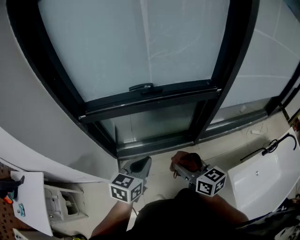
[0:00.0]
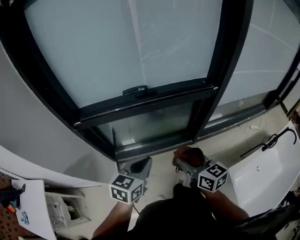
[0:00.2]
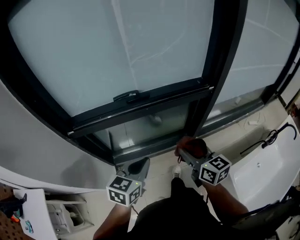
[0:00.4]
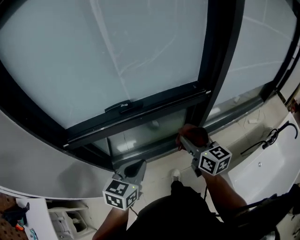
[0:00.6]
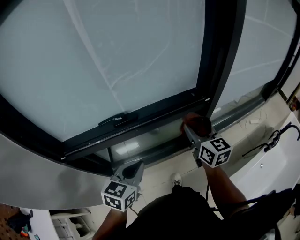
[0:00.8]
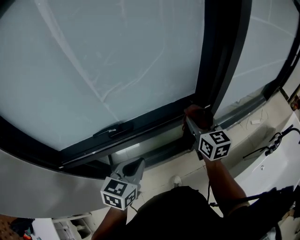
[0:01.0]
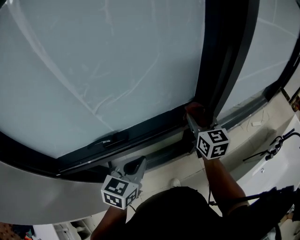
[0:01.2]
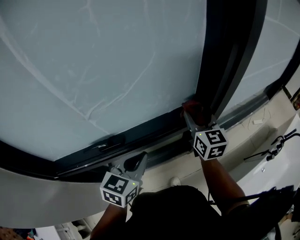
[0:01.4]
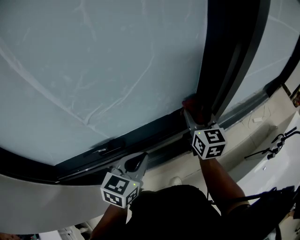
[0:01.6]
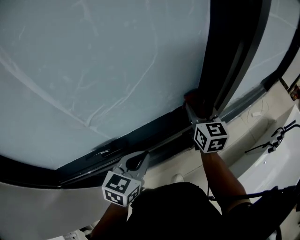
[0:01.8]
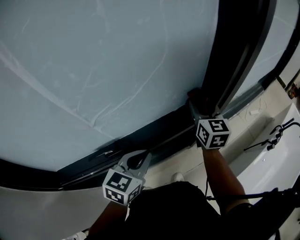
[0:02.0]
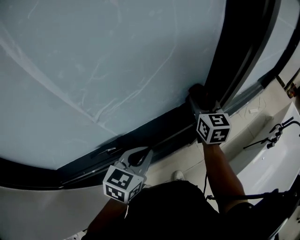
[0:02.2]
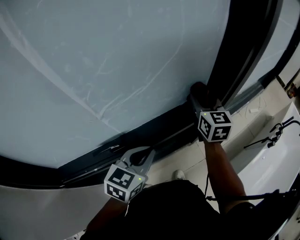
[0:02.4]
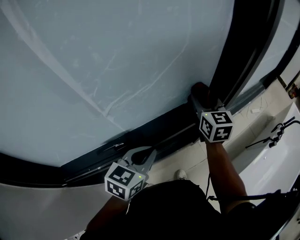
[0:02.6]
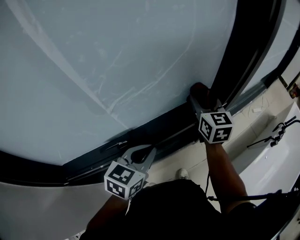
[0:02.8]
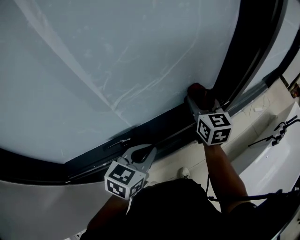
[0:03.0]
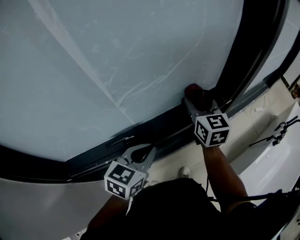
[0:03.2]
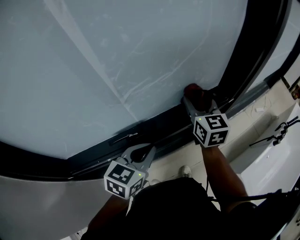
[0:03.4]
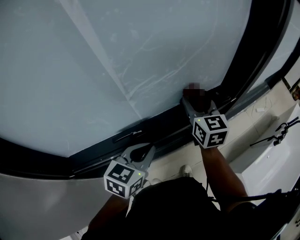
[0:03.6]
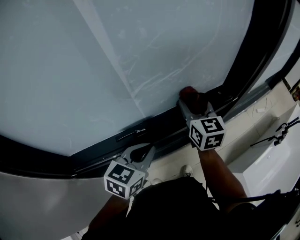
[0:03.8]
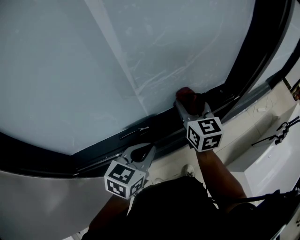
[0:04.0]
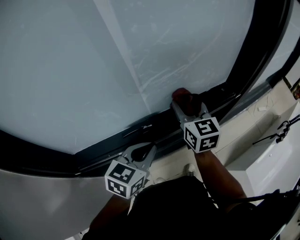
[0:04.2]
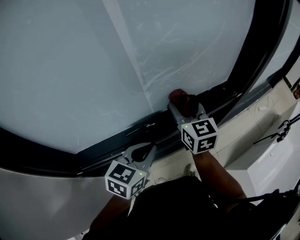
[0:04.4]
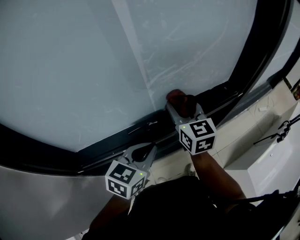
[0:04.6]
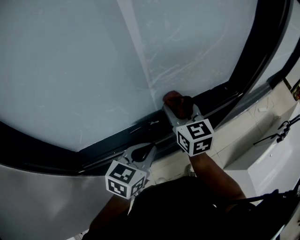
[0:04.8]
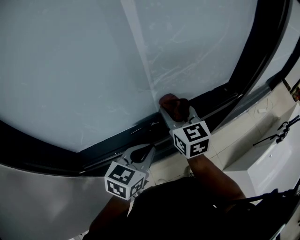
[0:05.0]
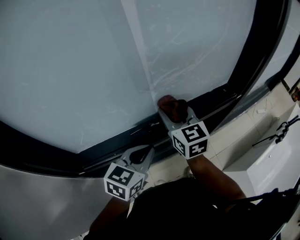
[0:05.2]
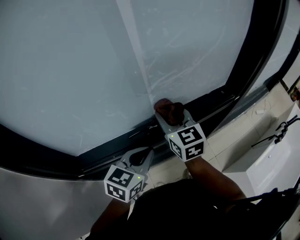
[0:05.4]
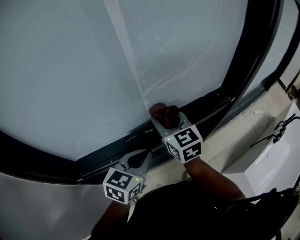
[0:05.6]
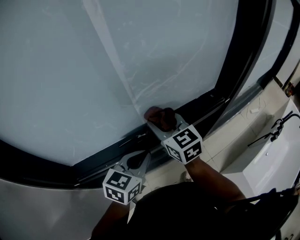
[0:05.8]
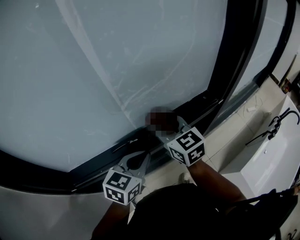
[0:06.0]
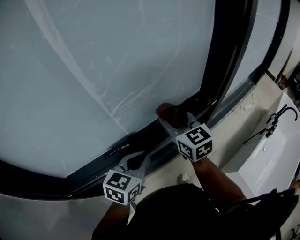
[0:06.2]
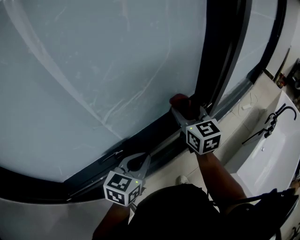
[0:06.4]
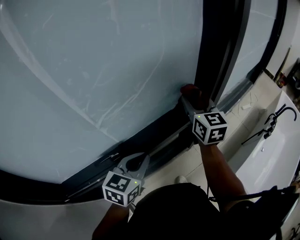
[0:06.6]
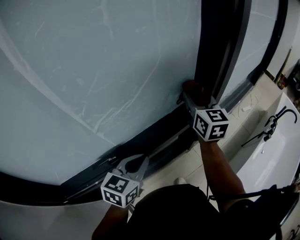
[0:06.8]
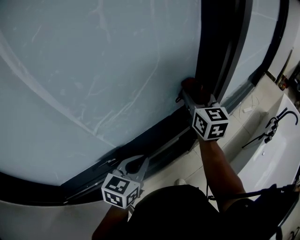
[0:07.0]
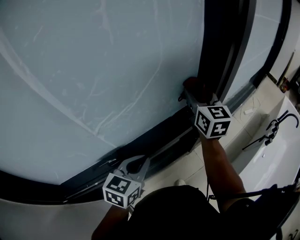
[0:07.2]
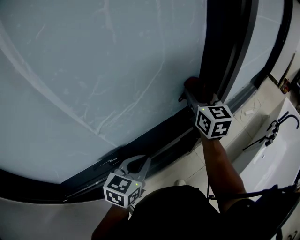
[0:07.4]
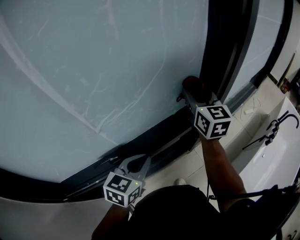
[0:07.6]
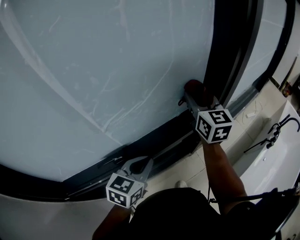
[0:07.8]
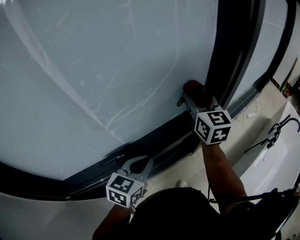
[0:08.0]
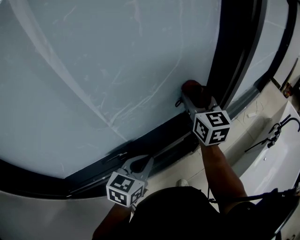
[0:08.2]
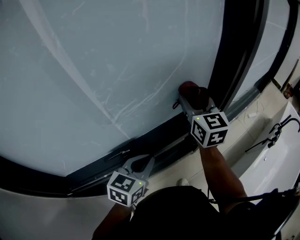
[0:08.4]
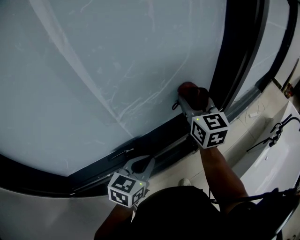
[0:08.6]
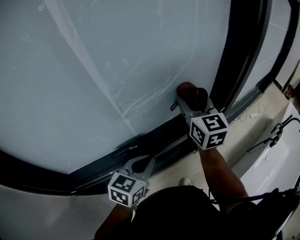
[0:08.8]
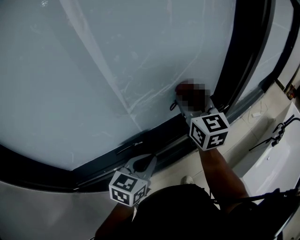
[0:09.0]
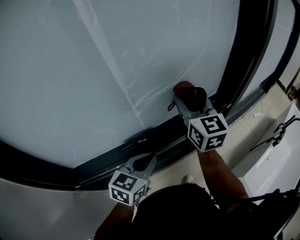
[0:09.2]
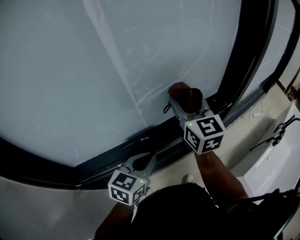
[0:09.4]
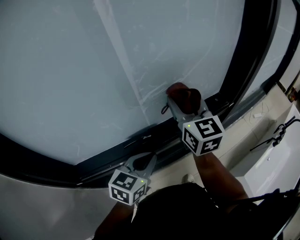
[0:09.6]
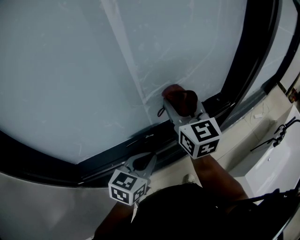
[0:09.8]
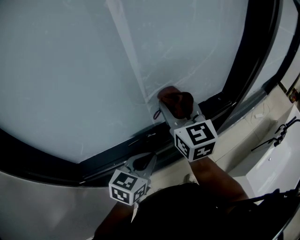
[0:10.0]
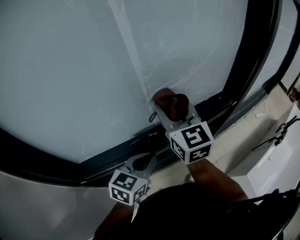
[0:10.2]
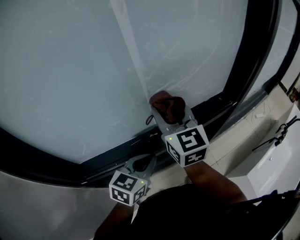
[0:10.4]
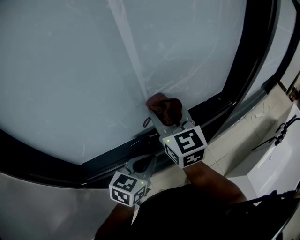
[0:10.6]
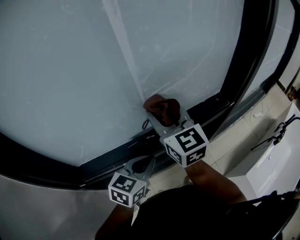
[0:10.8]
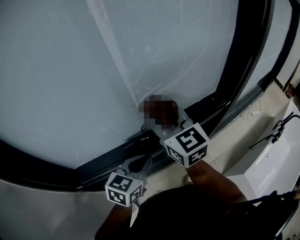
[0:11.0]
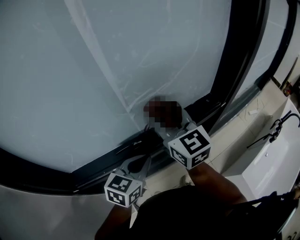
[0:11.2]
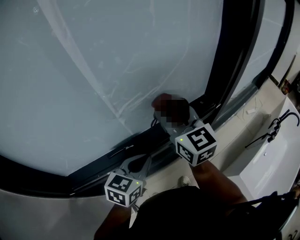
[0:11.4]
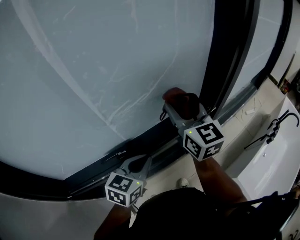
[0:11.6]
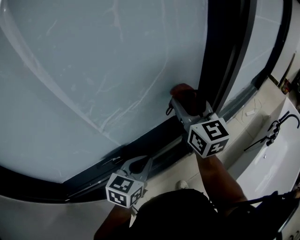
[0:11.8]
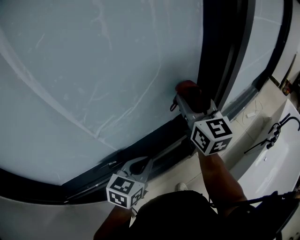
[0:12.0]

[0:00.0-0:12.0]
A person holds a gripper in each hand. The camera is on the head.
0:00.0 to 0:01.6: The grippers both shift forward by about 40 cm. The right gripper swivels roughly 40 degrees.
0:01.6 to 0:03.0: Both grippers travel together to the left, about 10 cm.
0:03.0 to 0:04.4: The right gripper travels to the left and backward by some 15 cm, while the left gripper shifts roughly 10 cm to the left and backward.
0:06.0 to 0:07.6: The right gripper heads to the right and forward, covering roughly 25 cm, and changes its angle by some 30 degrees. Meanwhile the left gripper goes about 10 cm to the right and forward.
0:07.6 to 0:09.0: The right gripper is displaced to the left and backward by approximately 15 cm, while the left gripper travels to the left and backward by about 10 cm.
0:09.0 to 0:10.4: The left gripper shifts approximately 5 cm to the left; the right gripper shifts approximately 15 cm to the left and backward.
0:10.4 to 0:12.0: The right gripper goes about 25 cm to the right and forward, while the left gripper is displaced to the right and forward by some 15 cm.

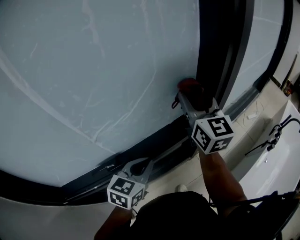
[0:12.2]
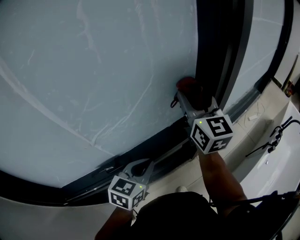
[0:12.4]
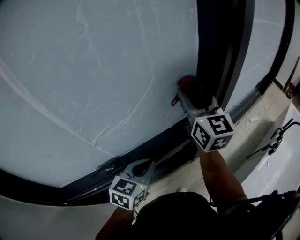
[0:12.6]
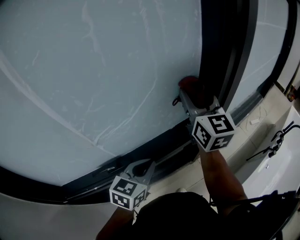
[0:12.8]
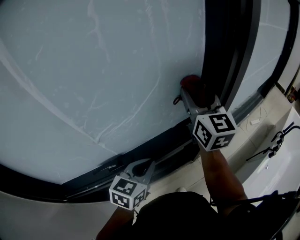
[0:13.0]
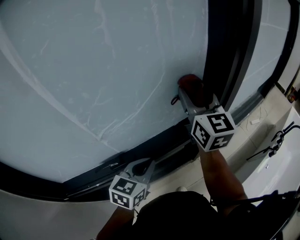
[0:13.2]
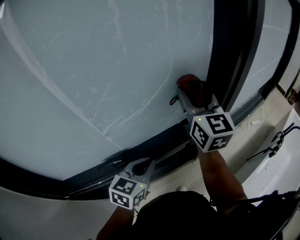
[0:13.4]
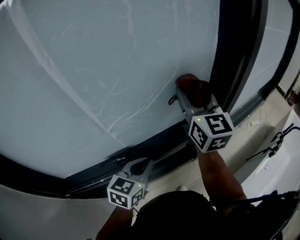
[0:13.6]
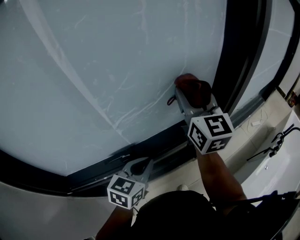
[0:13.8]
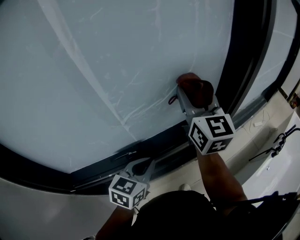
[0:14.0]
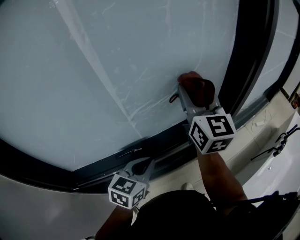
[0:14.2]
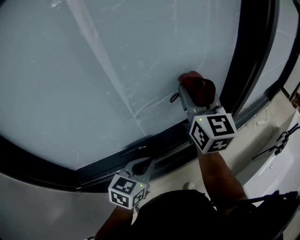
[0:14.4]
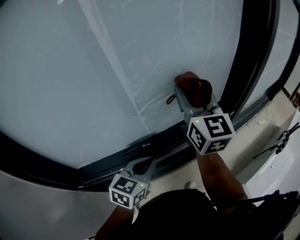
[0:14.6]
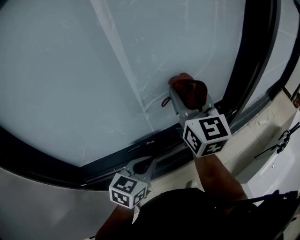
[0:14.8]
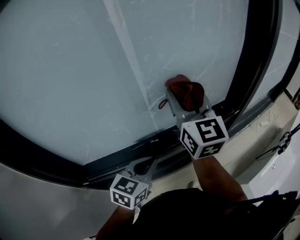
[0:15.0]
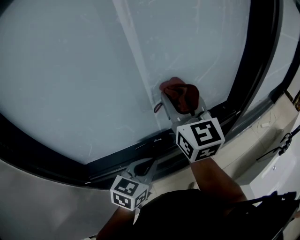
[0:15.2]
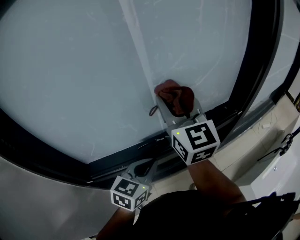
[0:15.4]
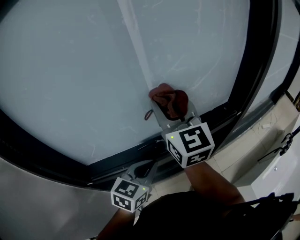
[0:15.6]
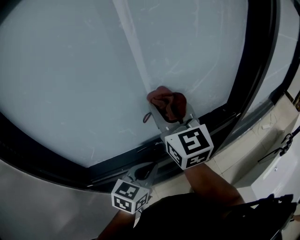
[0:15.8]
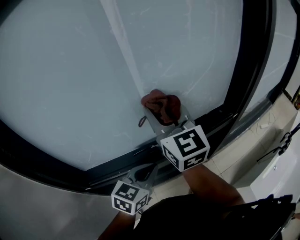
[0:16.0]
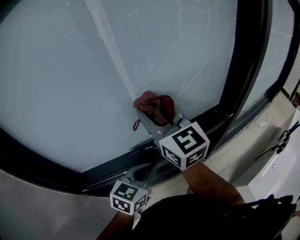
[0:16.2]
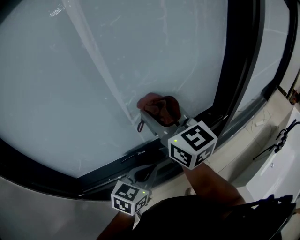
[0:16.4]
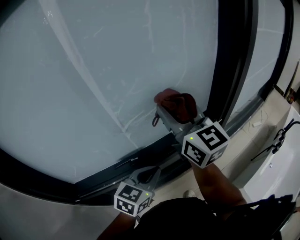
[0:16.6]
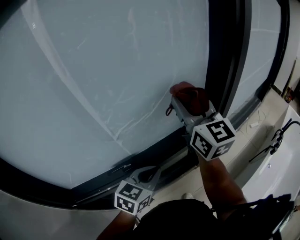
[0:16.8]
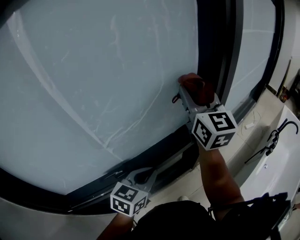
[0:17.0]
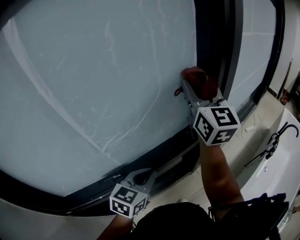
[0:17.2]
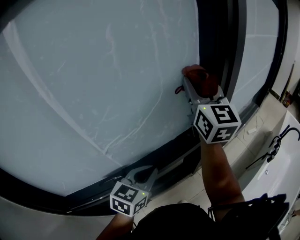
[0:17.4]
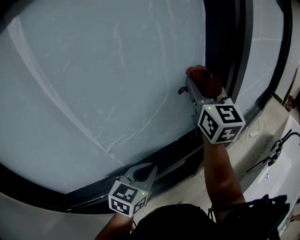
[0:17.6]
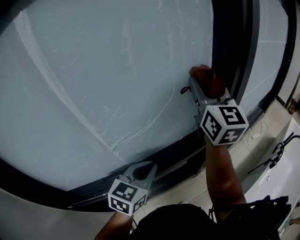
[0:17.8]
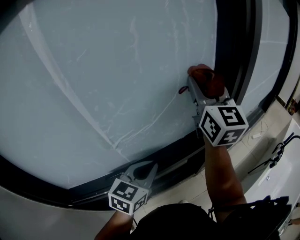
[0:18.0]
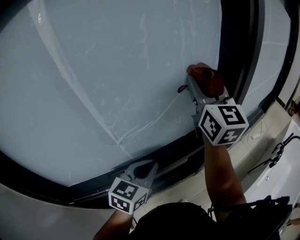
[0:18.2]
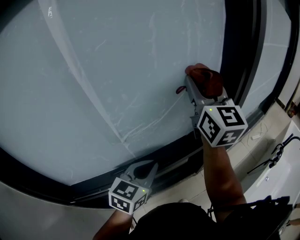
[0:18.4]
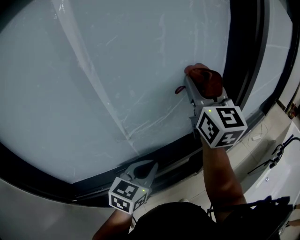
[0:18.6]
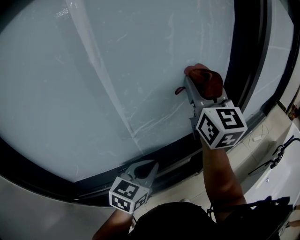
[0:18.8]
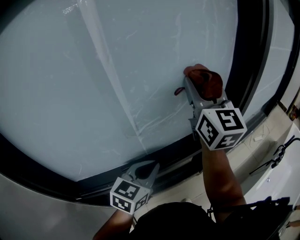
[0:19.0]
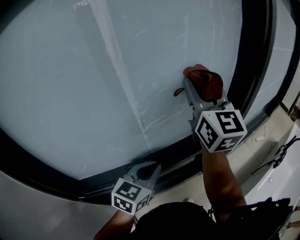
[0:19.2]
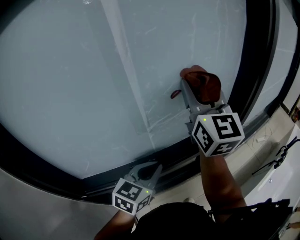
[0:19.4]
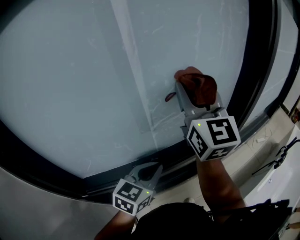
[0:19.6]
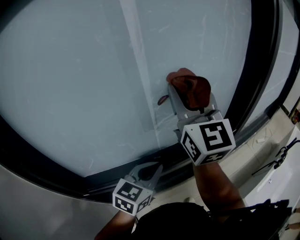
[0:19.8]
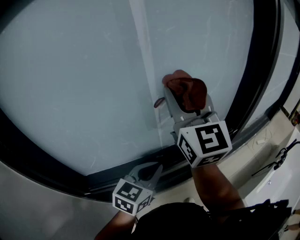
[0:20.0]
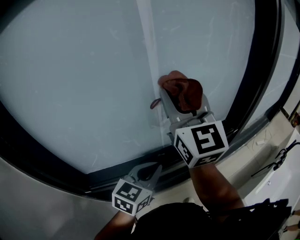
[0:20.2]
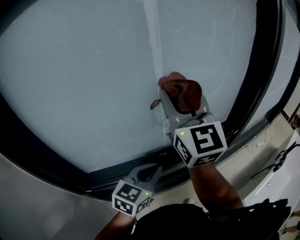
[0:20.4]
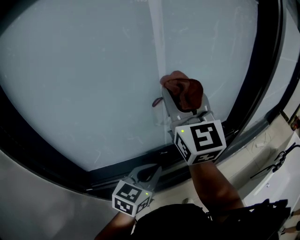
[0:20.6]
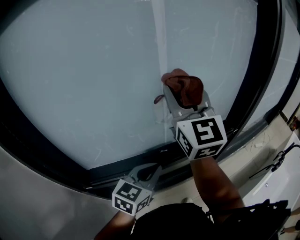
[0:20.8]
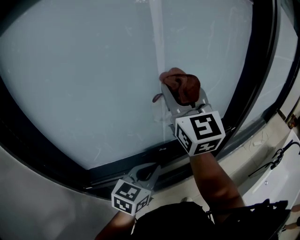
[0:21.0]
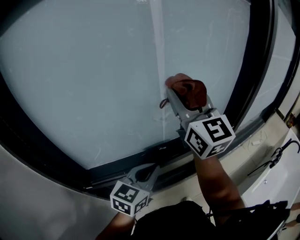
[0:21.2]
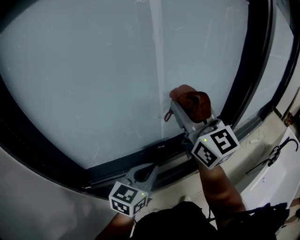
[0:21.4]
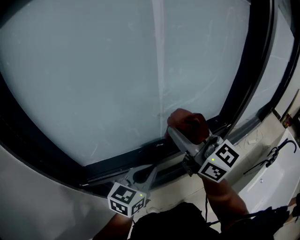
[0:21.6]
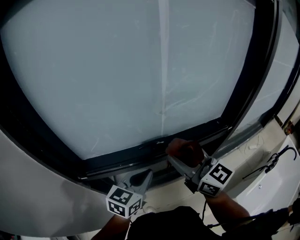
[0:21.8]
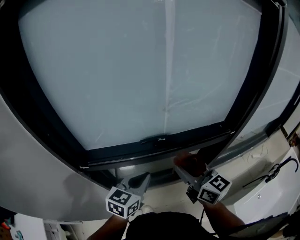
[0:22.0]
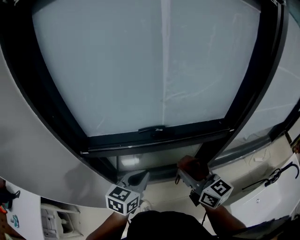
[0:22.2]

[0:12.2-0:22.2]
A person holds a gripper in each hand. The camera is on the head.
0:12.2 to 0:13.6: The right gripper heads to the left, covering roughly 5 cm.
0:13.6 to 0:15.0: The two grippers go approximately 15 cm to the left and backward.
0:16.4 to 0:18.0: The left gripper travels forward, to the right and upward by roughly 10 cm. The right gripper travels to the right, forward and upward by about 25 cm, and rotates some 30 degrees.
0:18.0 to 0:19.4: The right gripper goes roughly 15 cm to the left and backward. The left gripper is displaced to the left and backward by about 10 cm.
0:19.4 to 0:20.8: The left gripper shifts by roughly 5 cm, while the right gripper is displaced to the left and backward by some 10 cm.
0:20.8 to 0:22.2: The left gripper is displaced backward and downward by roughly 15 cm. Meanwhile the right gripper shifts approximately 35 cm downward and backward, and turns by about 40 degrees.

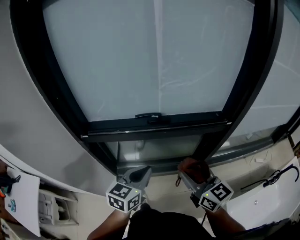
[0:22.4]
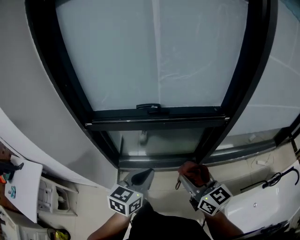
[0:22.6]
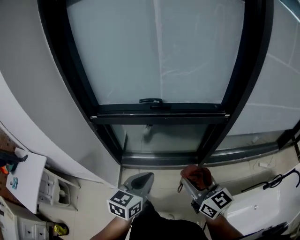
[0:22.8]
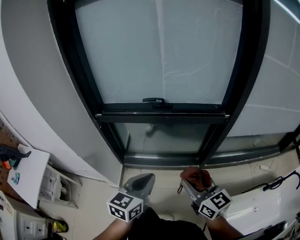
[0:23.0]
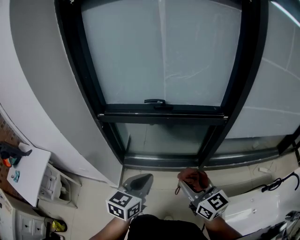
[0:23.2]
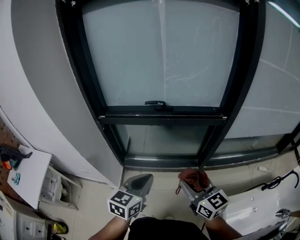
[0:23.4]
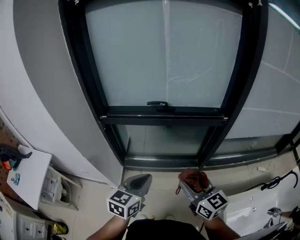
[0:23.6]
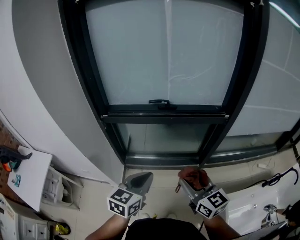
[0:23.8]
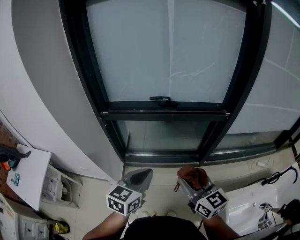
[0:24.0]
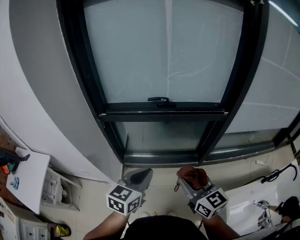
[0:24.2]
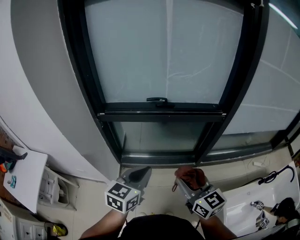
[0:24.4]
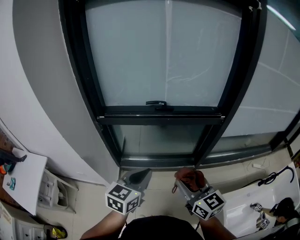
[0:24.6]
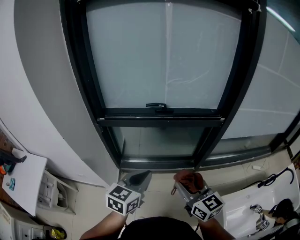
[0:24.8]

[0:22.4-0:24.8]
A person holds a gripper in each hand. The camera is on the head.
0:22.4 to 0:23.6: The two grippers go about 20 cm backward.
0:23.6 to 0:24.8: The grippers make only small movements.
